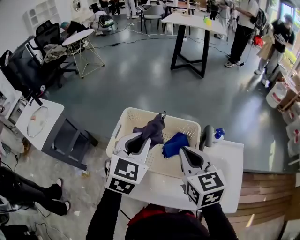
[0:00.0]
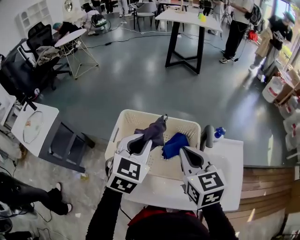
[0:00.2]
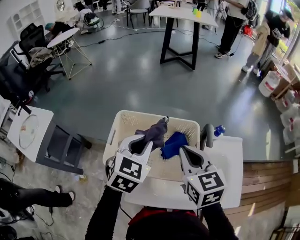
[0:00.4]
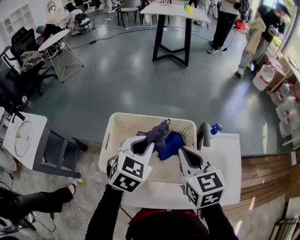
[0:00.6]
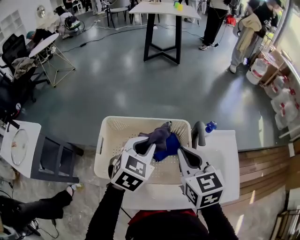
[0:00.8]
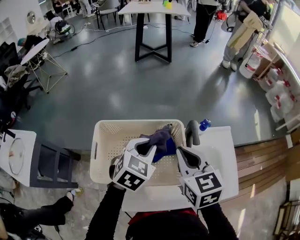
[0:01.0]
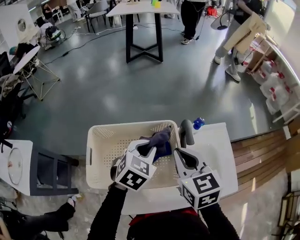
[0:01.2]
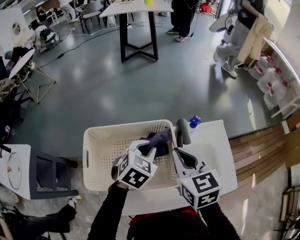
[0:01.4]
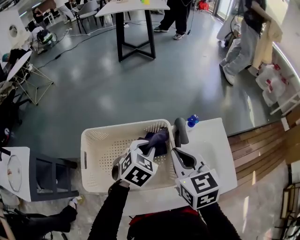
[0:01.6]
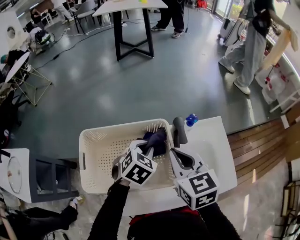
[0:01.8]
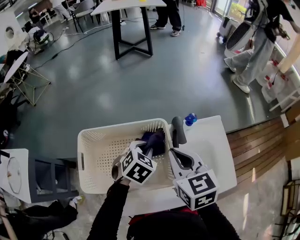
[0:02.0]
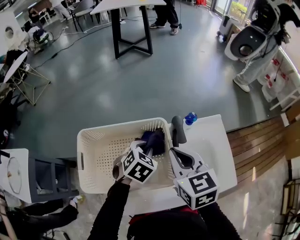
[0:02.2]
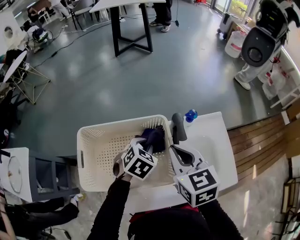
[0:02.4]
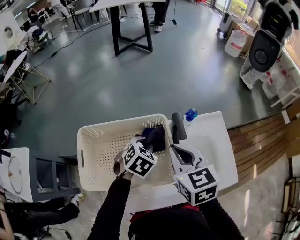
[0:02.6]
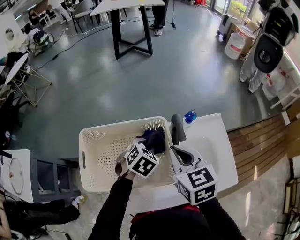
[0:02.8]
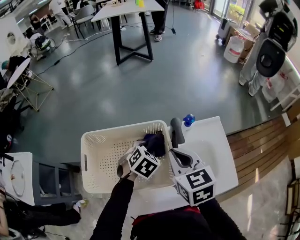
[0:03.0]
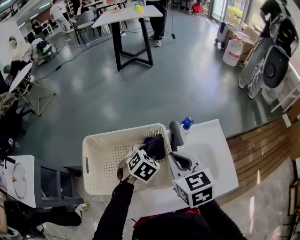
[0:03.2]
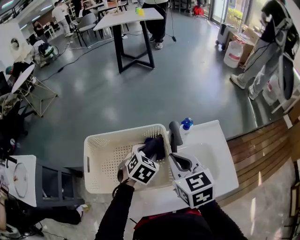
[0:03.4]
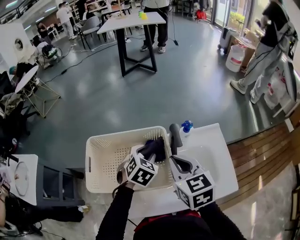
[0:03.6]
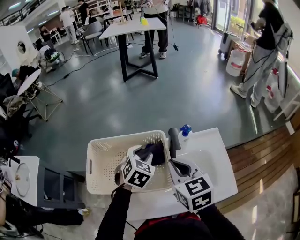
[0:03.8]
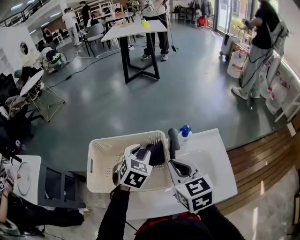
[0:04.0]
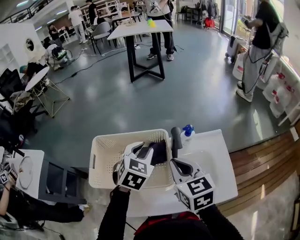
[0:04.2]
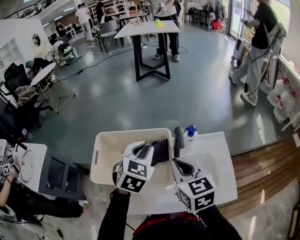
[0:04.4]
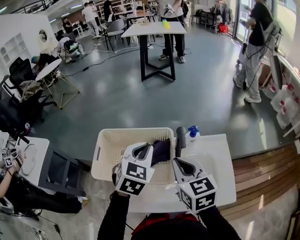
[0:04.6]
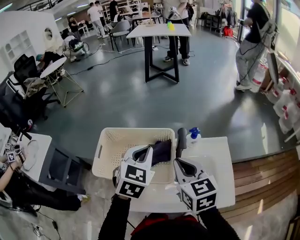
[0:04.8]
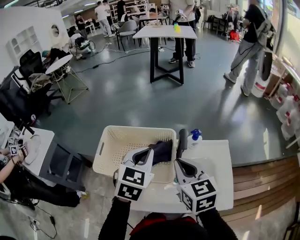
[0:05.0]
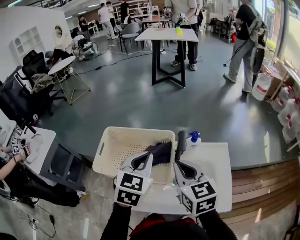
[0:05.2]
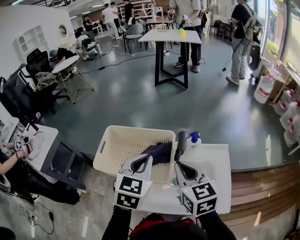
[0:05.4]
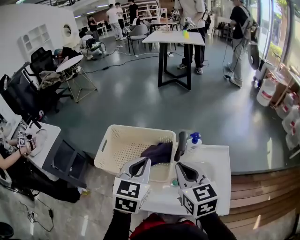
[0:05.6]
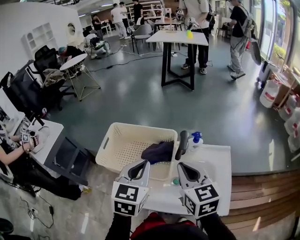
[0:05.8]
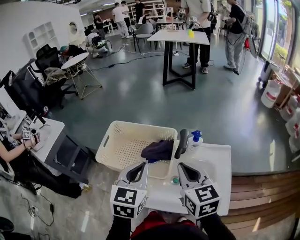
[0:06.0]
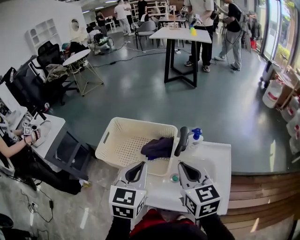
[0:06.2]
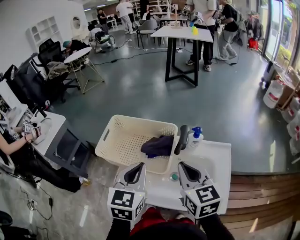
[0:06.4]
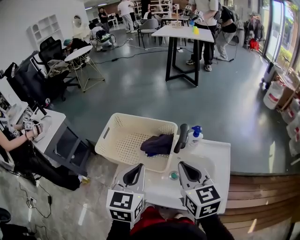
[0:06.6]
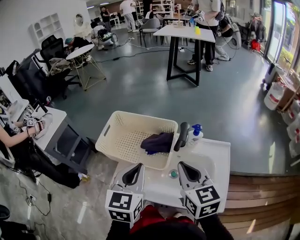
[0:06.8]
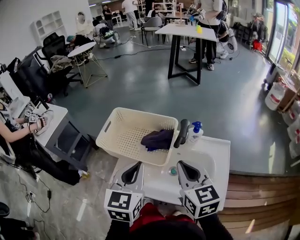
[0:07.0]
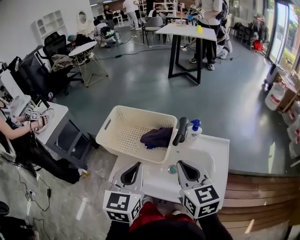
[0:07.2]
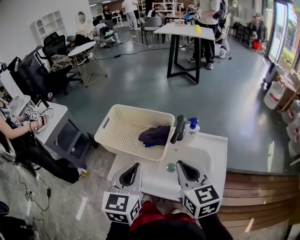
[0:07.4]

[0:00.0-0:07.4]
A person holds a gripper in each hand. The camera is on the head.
0.0 to 1.4 s: The right gripper moves about 5 cm, and turns by about 20 degrees; the left gripper shifts by about 15 cm, and turns by roughly 30 degrees.
1.4 to 3.0 s: The left gripper goes about 10 cm downward, and opens.
3.0 to 4.4 s: The left gripper travels upward by roughly 15 cm, and swivels some 30 degrees.
4.4 to 6.0 s: The left gripper heads backward, covering approximately 10 cm, changes its angle by some 30 degrees, and closes up. Meanwhile the right gripper moves roughly 5 cm.
6.0 to 7.4 s: The two grippers go about 5 cm backward.

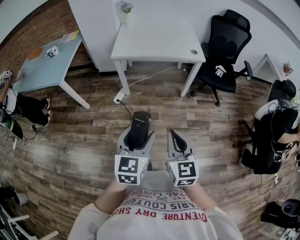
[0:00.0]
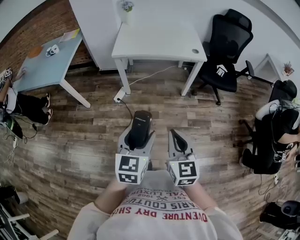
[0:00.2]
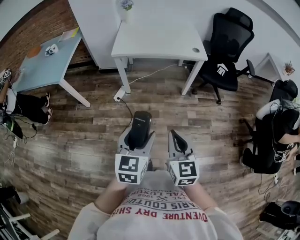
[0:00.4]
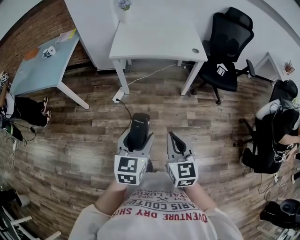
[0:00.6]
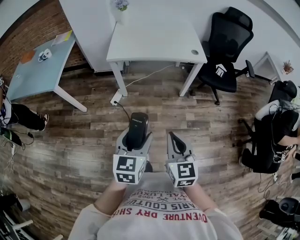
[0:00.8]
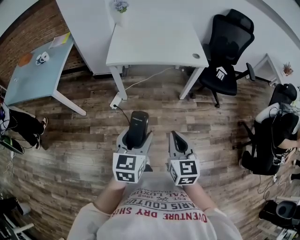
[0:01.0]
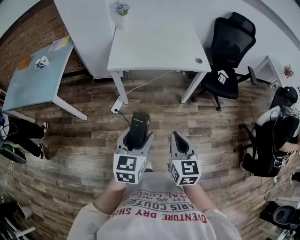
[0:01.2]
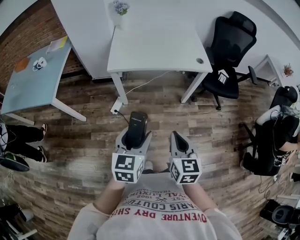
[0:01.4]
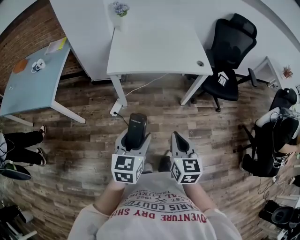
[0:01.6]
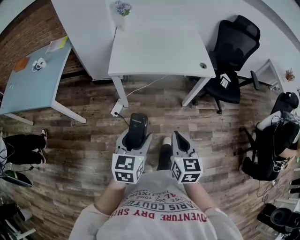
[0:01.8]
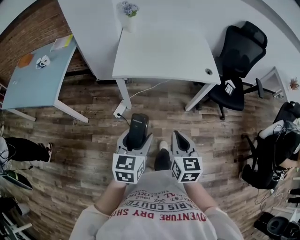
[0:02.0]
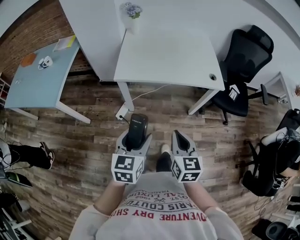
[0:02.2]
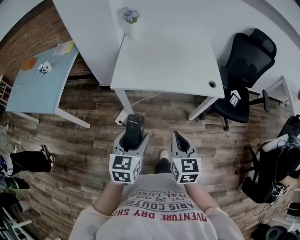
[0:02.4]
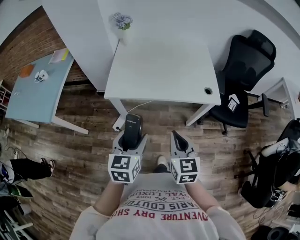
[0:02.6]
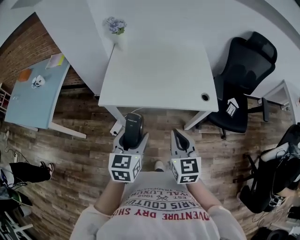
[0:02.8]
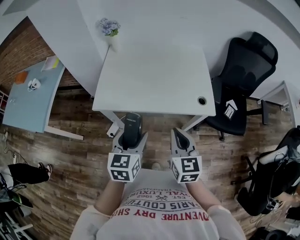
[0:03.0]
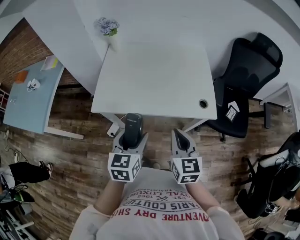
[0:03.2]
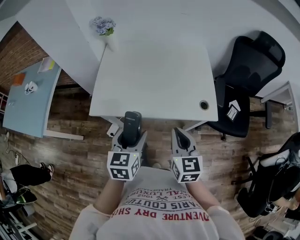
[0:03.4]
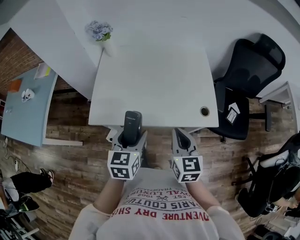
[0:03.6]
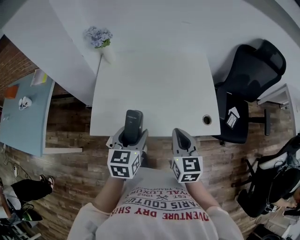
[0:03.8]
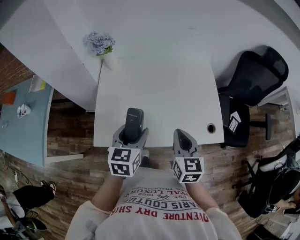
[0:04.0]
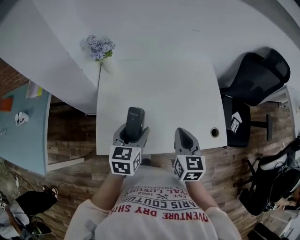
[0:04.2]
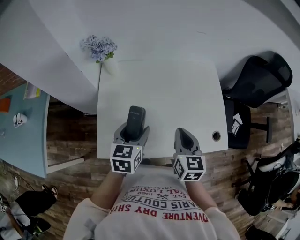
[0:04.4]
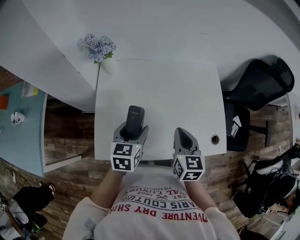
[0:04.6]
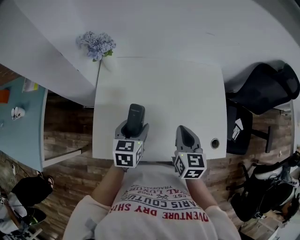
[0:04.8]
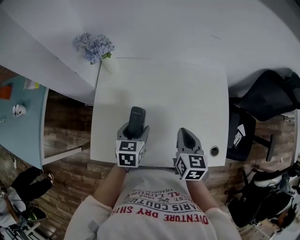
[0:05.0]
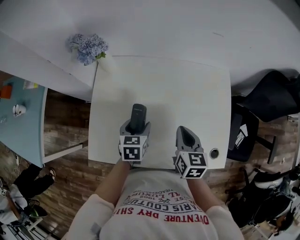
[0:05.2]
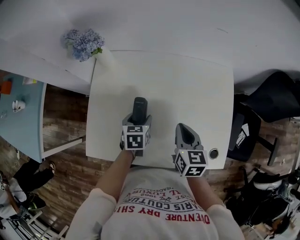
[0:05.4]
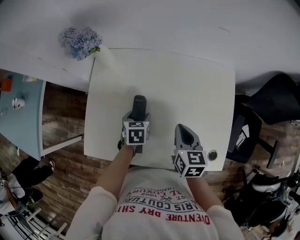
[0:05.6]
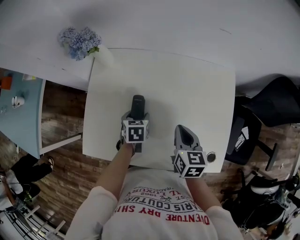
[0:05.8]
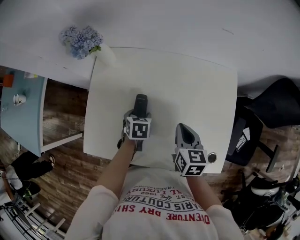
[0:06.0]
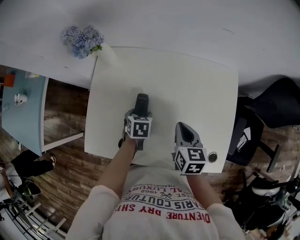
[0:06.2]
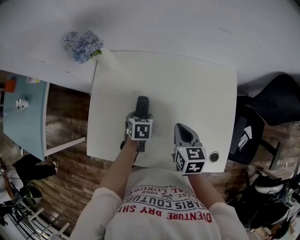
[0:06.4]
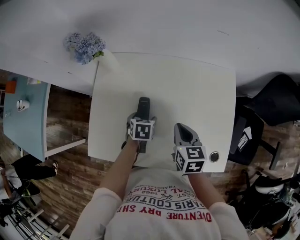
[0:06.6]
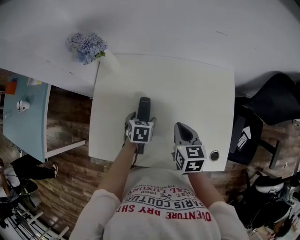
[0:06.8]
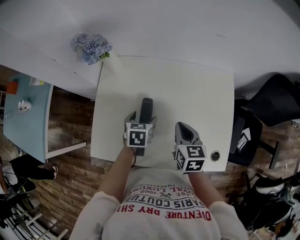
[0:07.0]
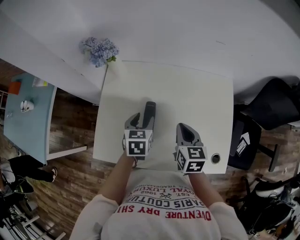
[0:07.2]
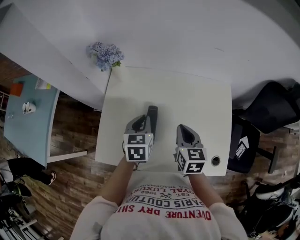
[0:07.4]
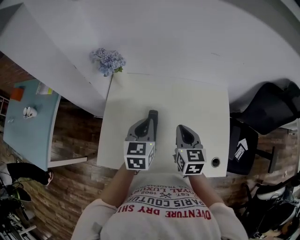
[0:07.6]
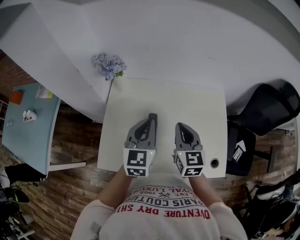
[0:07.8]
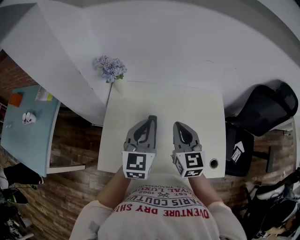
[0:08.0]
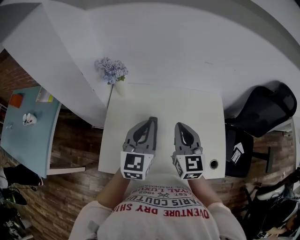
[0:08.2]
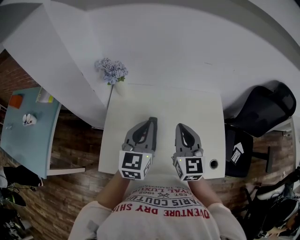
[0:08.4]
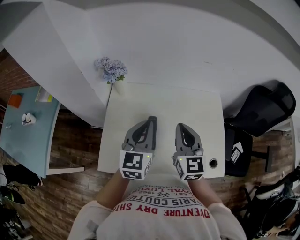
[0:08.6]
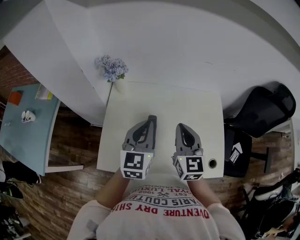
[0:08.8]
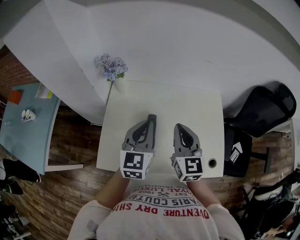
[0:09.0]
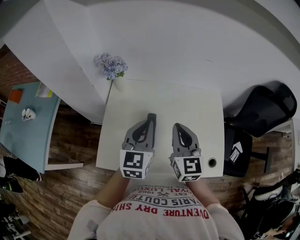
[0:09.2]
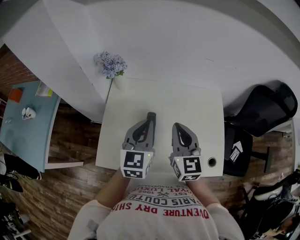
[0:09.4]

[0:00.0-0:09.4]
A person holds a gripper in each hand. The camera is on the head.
0.0 to 1.6 s: The right gripper shifts about 20 cm forward; the left gripper moves forward and to the left, approximately 25 cm.
1.6 to 3.2 s: Both grippers travel together forward, about 35 cm.
3.2 to 4.8 s: Both grippers travel together forward, some 30 cm.
4.8 to 6.2 s: The right gripper travels downward and forward by approximately 10 cm. Meanwhile the left gripper heads downward and forward, covering some 20 cm, and turns by some 30 degrees.
6.2 to 7.8 s: The right gripper travels upward and to the left by approximately 15 cm, and rotates roughly 30 degrees. Meanwhile the left gripper shifts approximately 30 cm upward, angles its fingers upward, by some 50 degrees, and closes.
7.8 to 9.4 s: The right gripper shifts by approximately 5 cm.

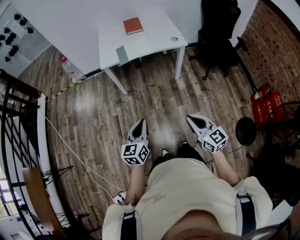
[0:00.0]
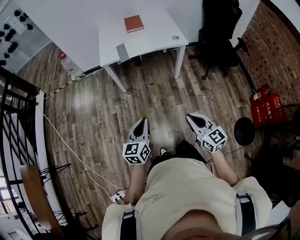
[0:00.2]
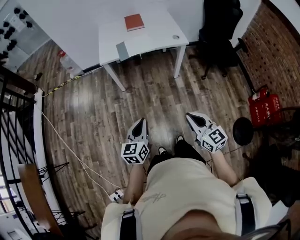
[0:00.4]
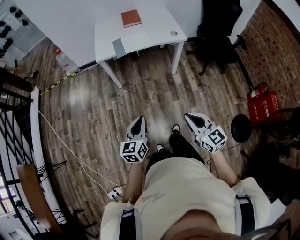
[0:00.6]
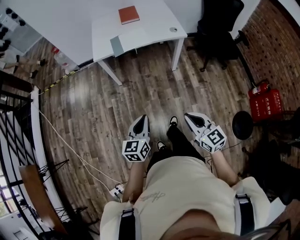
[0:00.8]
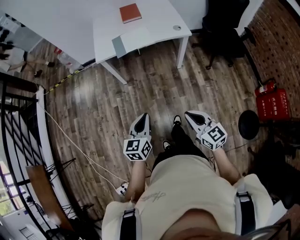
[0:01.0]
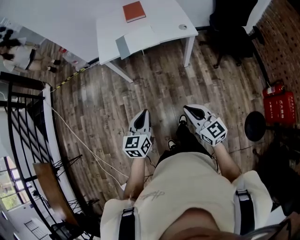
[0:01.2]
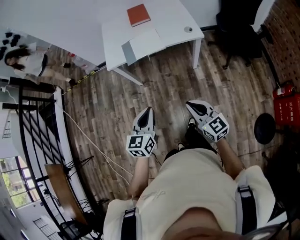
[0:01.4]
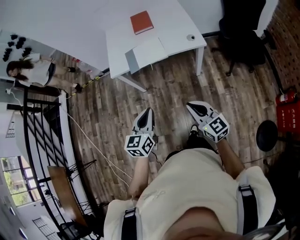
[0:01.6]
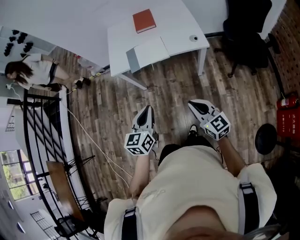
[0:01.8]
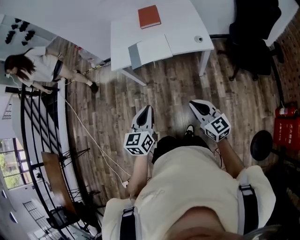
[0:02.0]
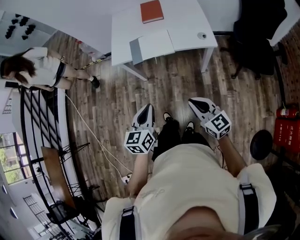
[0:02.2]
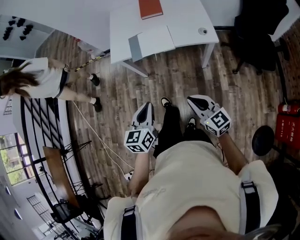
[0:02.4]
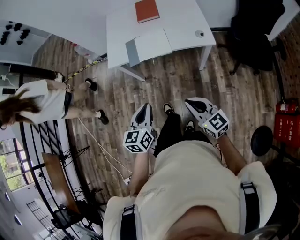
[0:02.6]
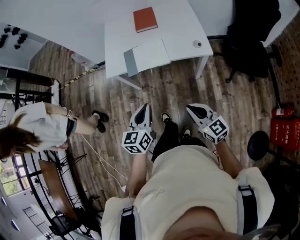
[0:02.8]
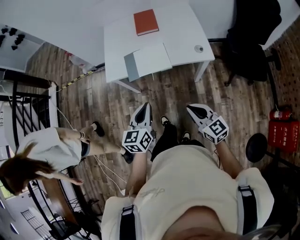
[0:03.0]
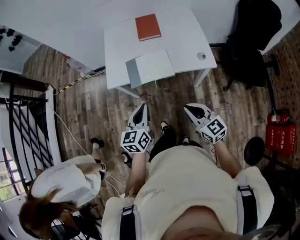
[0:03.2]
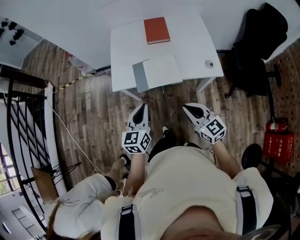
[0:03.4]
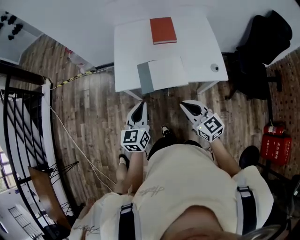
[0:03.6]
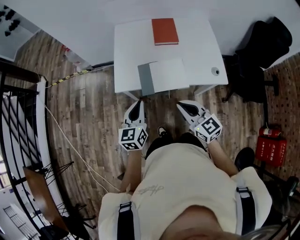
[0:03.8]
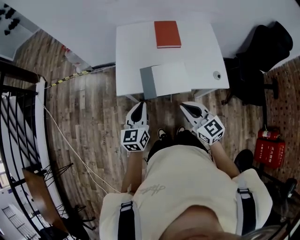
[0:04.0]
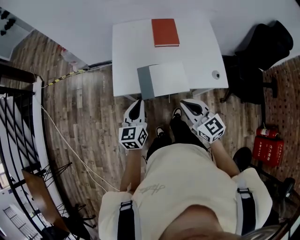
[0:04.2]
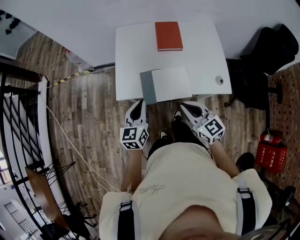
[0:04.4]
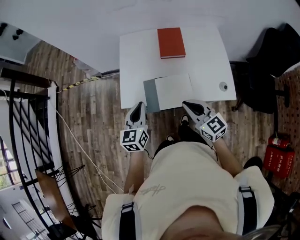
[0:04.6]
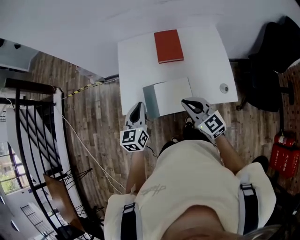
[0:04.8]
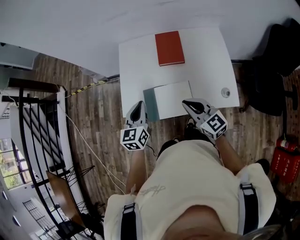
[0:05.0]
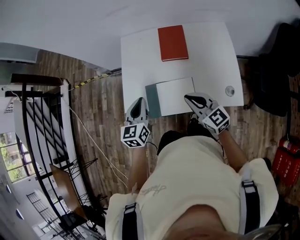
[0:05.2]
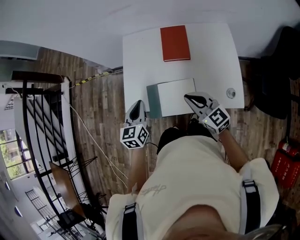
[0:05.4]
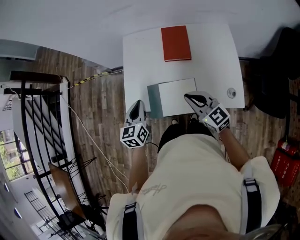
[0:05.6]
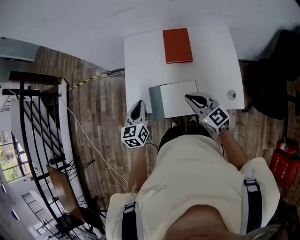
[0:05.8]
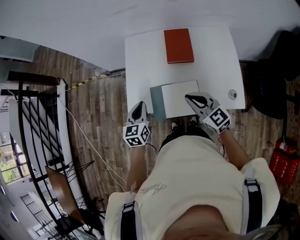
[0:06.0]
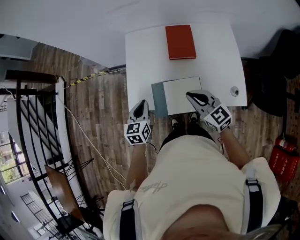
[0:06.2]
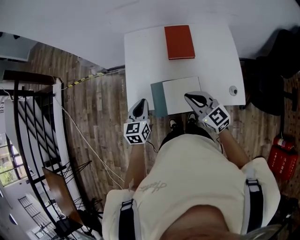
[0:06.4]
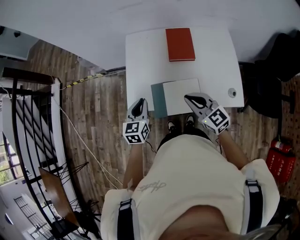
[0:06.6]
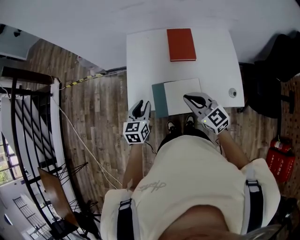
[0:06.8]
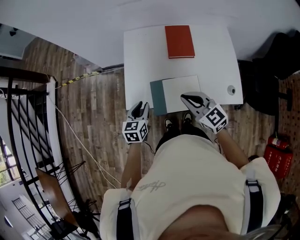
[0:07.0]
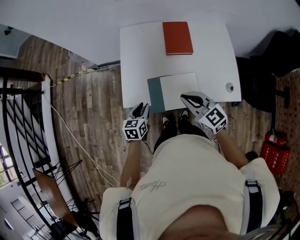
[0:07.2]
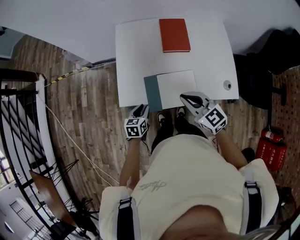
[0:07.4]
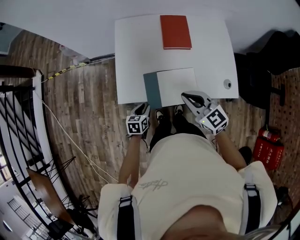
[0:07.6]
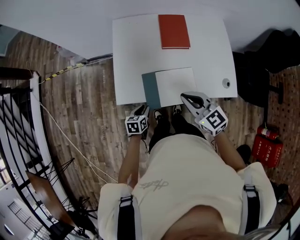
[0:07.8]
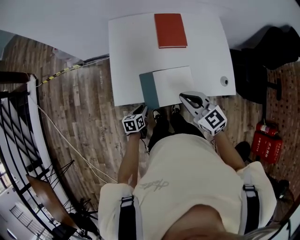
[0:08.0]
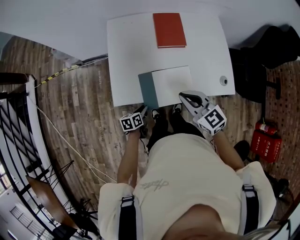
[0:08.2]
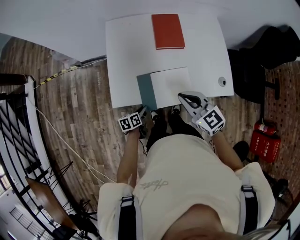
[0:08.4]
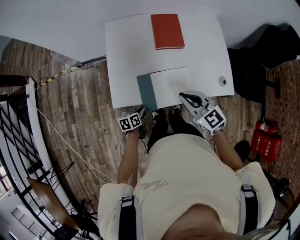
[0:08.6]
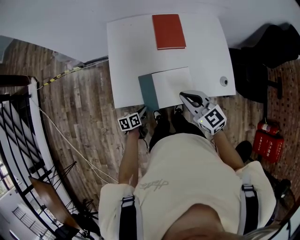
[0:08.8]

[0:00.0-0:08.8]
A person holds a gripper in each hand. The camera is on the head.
0.0 to 1.4 s: The grippers both shift forward by about 15 cm.
1.4 to 3.0 s: The grippers both shift forward by some 15 cm.
3.0 to 4.4 s: The two grippers go approximately 25 cm forward.
4.4 to 5.8 s: The left gripper moves forward, approximately 10 cm; the right gripper heads forward and to the right, covering some 15 cm.
5.8 to 7.4 s: The right gripper heads to the left, covering about 5 cm. Meanwhile the left gripper is displaced downward by approximately 20 cm, swivels approximately 30 degrees, and opens.
7.4 to 8.8 s: The left gripper goes roughly 10 cm downward, rotates some 30 degrees, and closes up.
